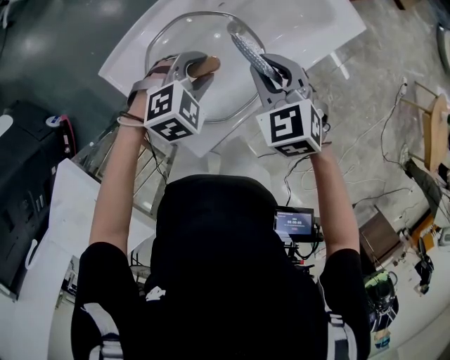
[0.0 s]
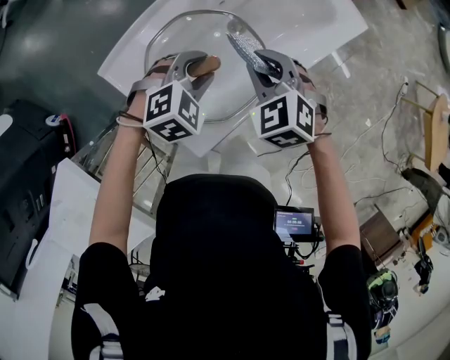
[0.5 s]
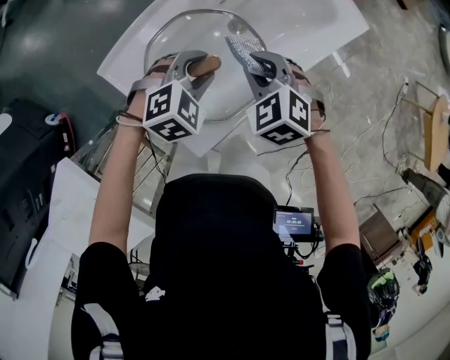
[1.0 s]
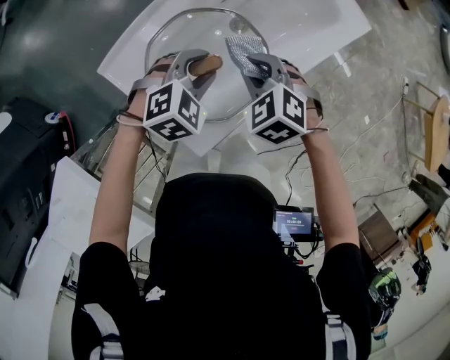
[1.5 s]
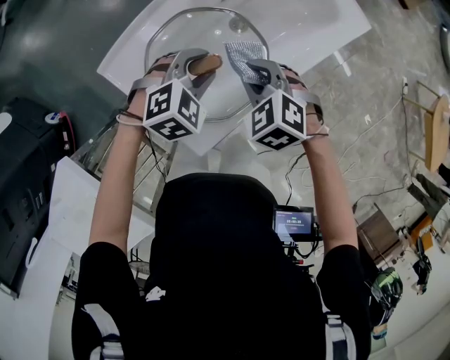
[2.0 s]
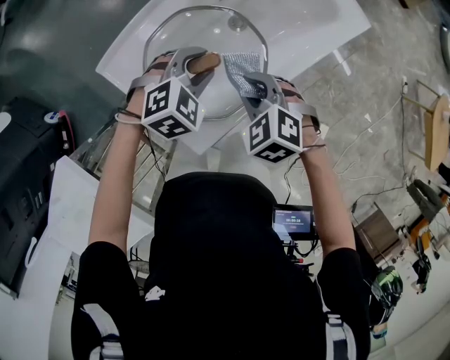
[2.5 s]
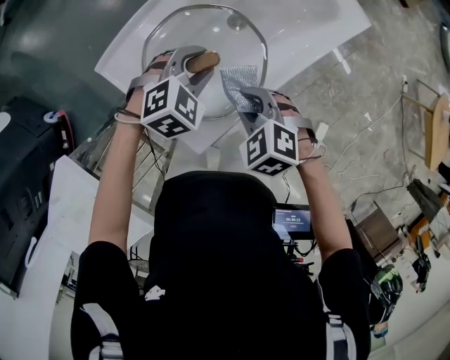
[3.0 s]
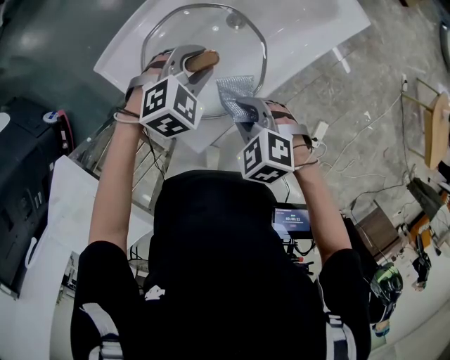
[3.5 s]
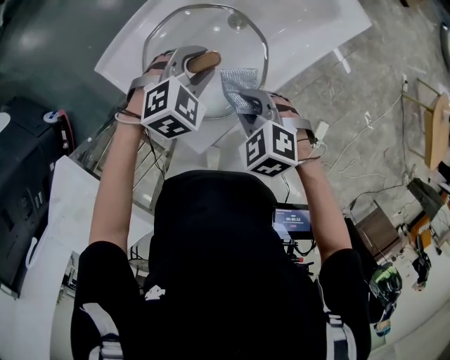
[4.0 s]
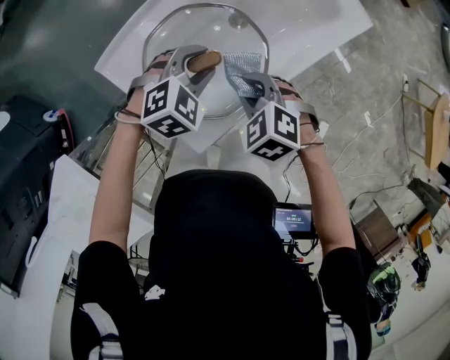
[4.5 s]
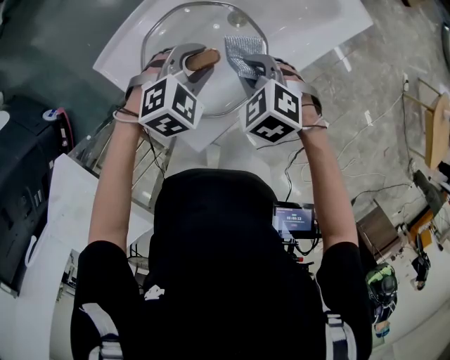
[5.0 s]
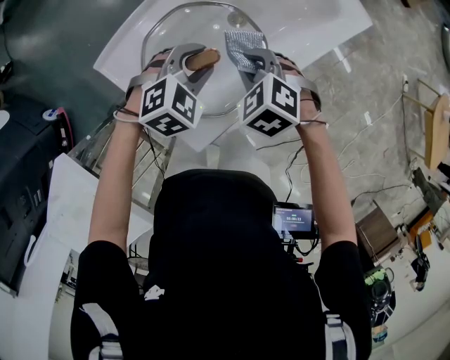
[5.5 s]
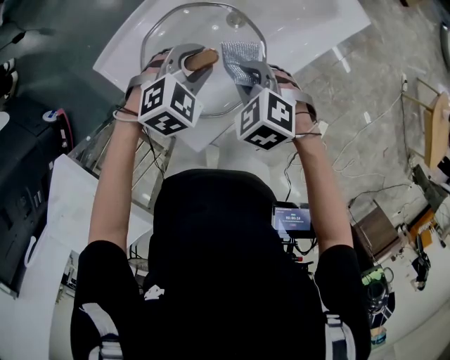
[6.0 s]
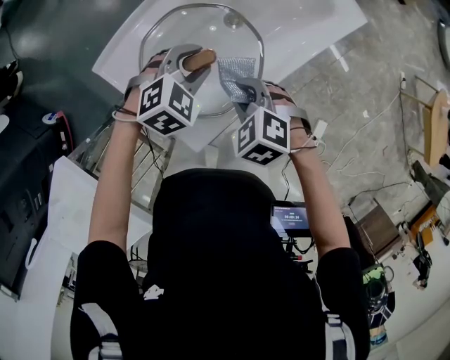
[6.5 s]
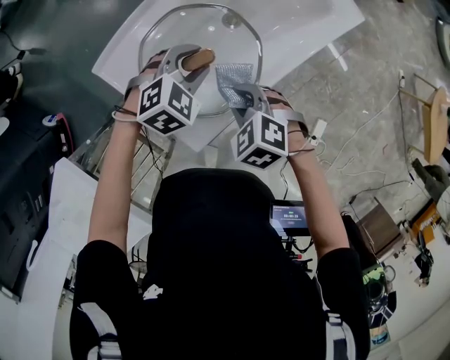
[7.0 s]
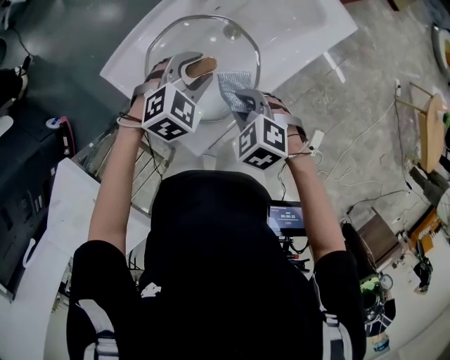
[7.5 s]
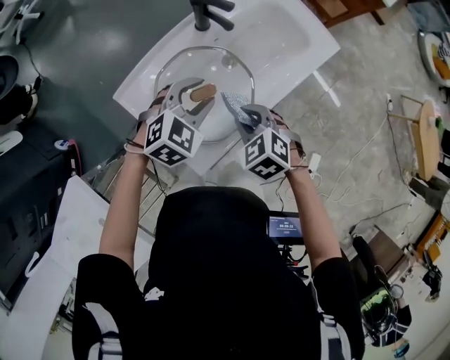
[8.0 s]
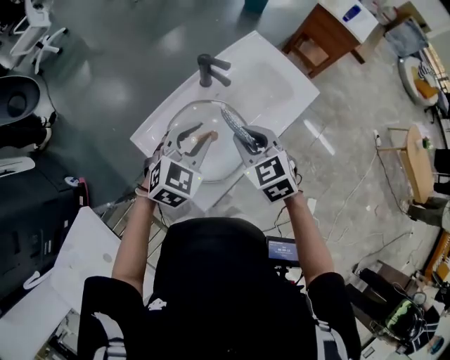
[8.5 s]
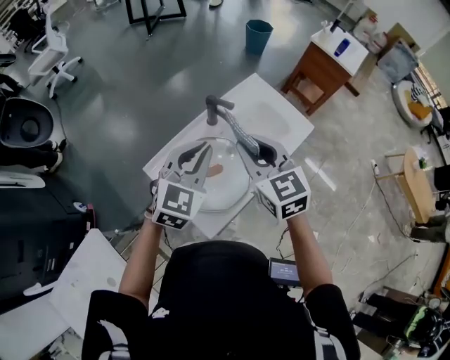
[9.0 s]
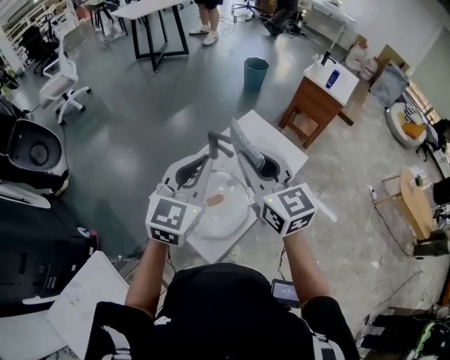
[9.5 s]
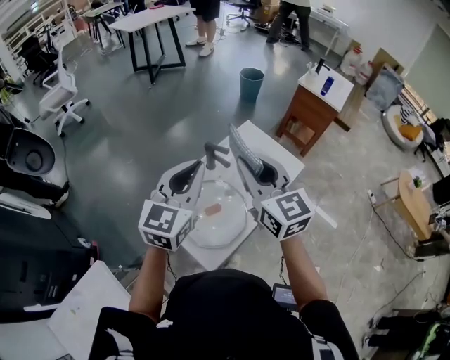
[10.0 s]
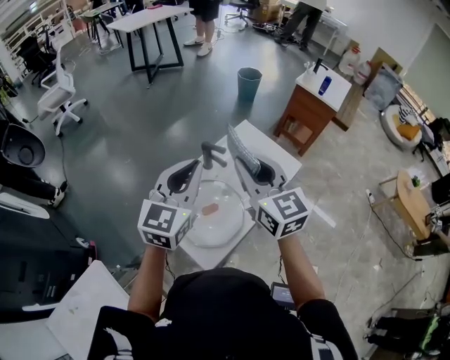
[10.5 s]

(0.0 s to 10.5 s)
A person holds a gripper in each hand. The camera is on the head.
0.0 s - 2.0 s: The right gripper moves downward, approximately 5 cm.
2.0 s - 4.0 s: The right gripper heads backward, covering about 10 cm.
4.0 s - 6.5 s: The right gripper moves approximately 10 cm forward and comes back.
6.5 s - 8.5 s: The grippers both shift upward by some 20 cm. The left gripper rotates approximately 20 degrees. The right gripper turns by approximately 40 degrees.
8.5 s - 10.5 s: Both grippers travel together upward, roughly 25 cm. The right gripper angles its fingers upward, by roughly 40 degrees, while the left gripper rotates roughly 30 degrees, and closes.

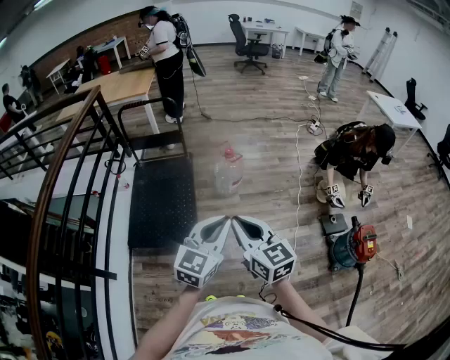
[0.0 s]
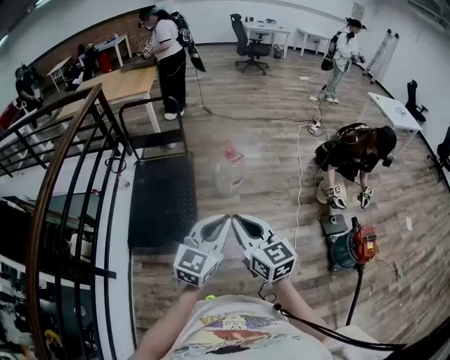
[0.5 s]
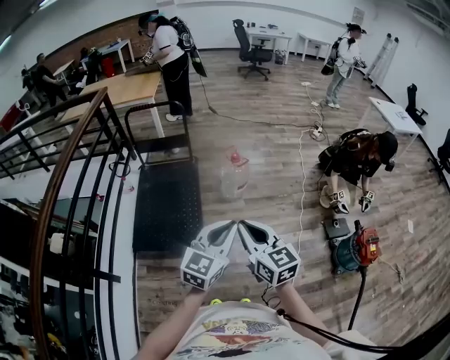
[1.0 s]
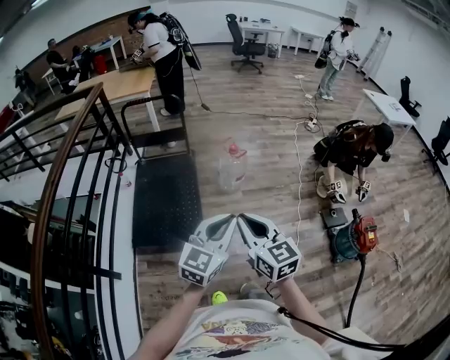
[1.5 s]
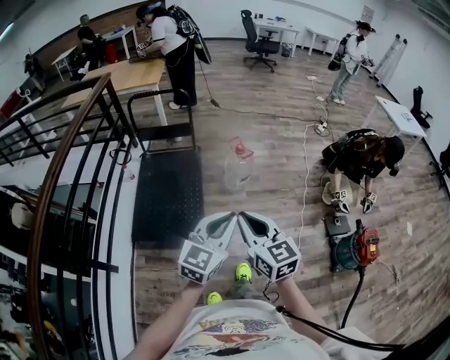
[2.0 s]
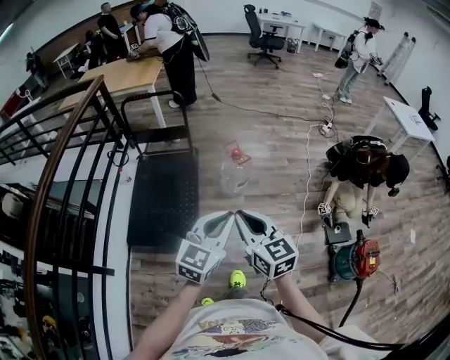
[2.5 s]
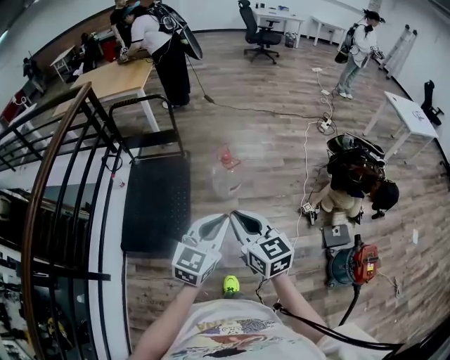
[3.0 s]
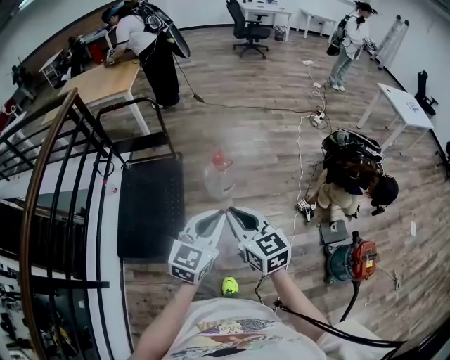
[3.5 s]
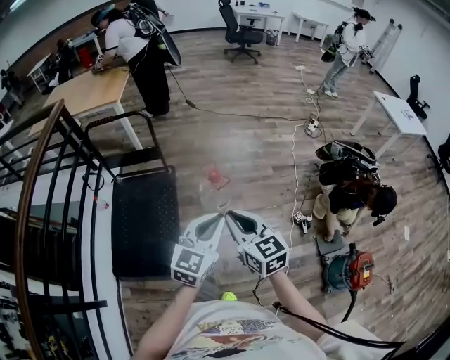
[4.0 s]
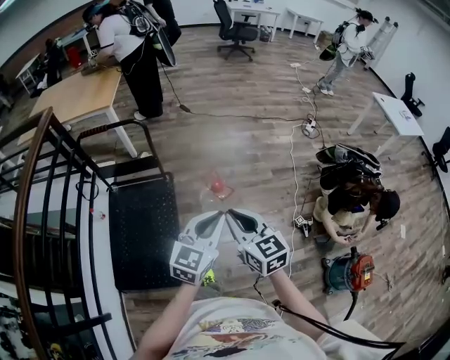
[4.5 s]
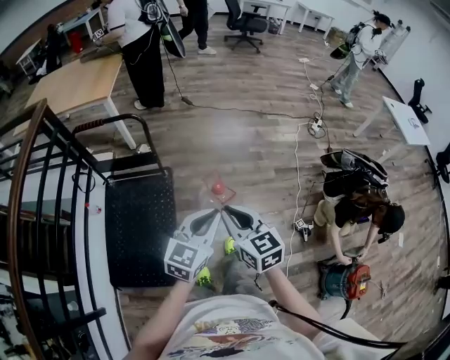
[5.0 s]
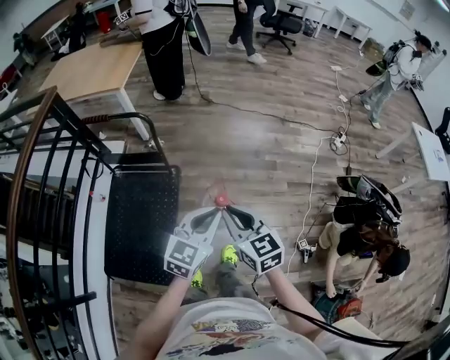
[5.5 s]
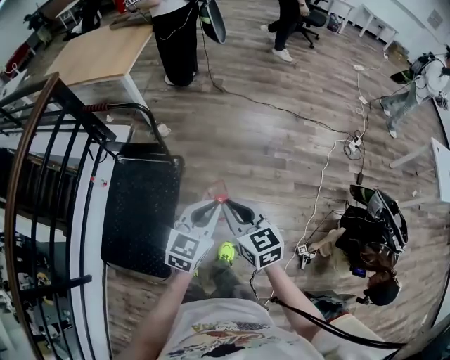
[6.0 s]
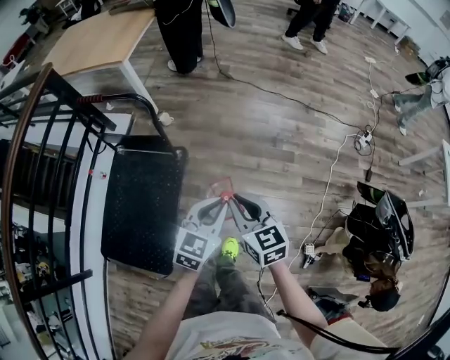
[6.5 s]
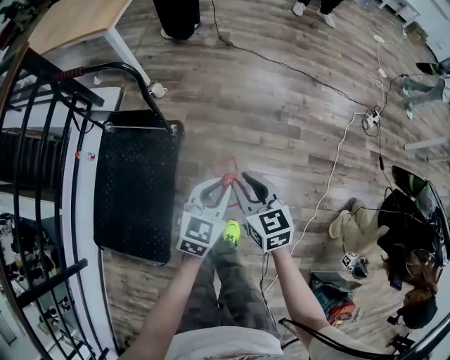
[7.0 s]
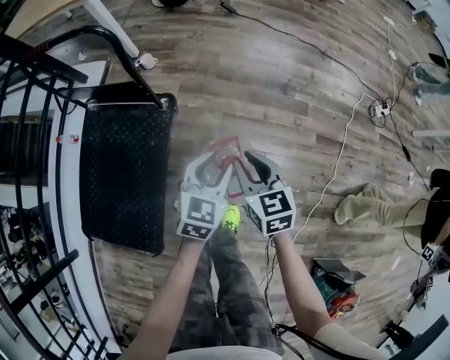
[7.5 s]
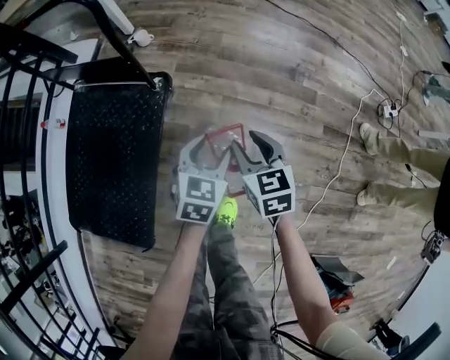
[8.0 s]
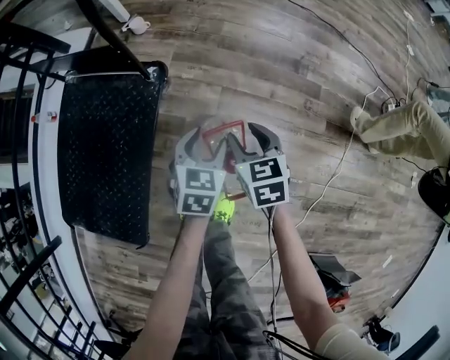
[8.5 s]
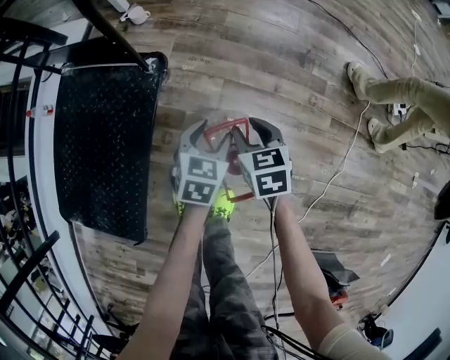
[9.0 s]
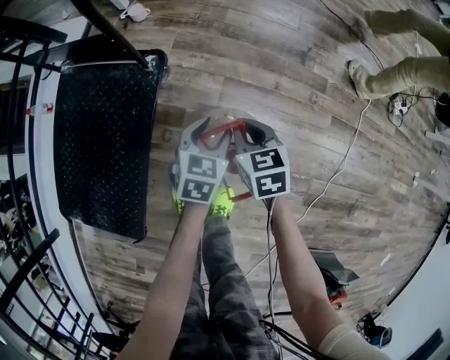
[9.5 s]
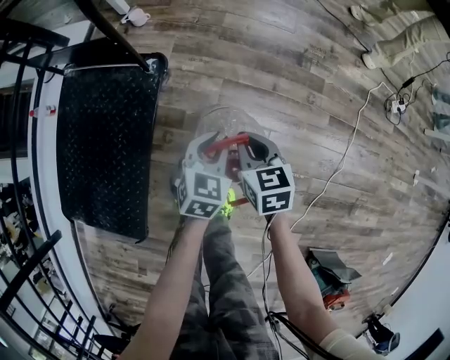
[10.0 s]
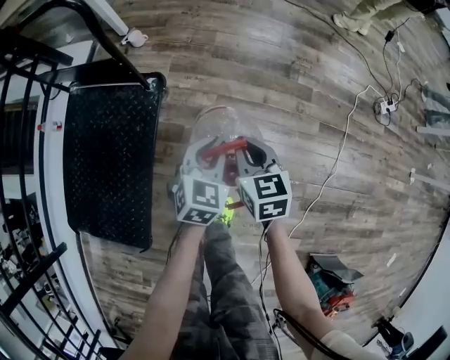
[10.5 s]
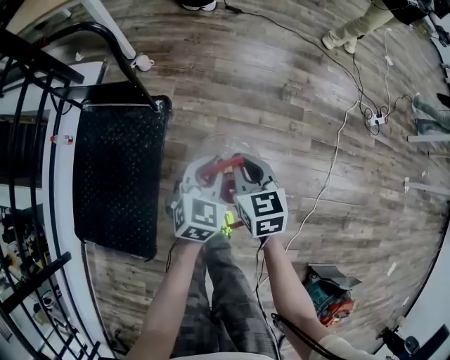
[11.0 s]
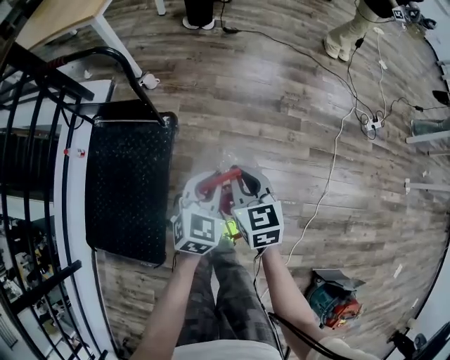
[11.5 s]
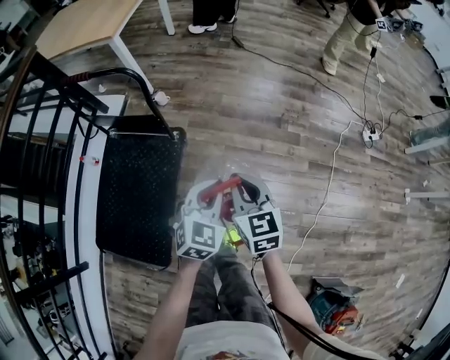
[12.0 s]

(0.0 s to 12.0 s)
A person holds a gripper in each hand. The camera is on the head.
0.0 s - 2.0 s: Both grippers move to the left, some 5 cm.
2.0 s - 4.0 s: Both grippers move forward, about 35 cm.
4.0 s - 6.0 s: The pair of grippers is taken forward, some 40 cm.
6.0 s - 8.0 s: The two grippers go approximately 40 cm downward. The left gripper rotates approximately 20 degrees, and opens. Meanwhile the right gripper changes its angle by about 20 degrees, and opens its fingers.
8.0 s - 10.0 s: The grippers both shift downward by roughly 10 cm. The right gripper closes up. The left gripper closes its fingers.
10.0 s - 12.0 s: Both grippers move upward, about 35 cm.

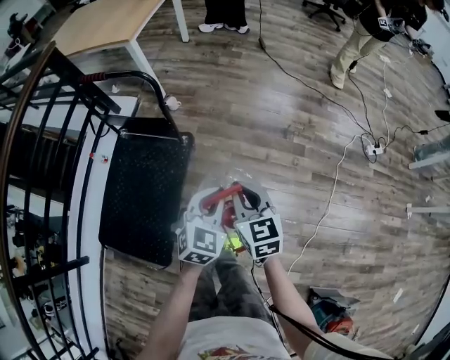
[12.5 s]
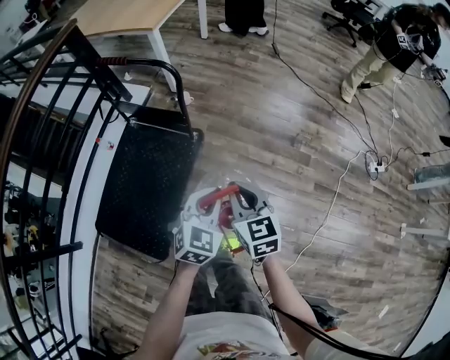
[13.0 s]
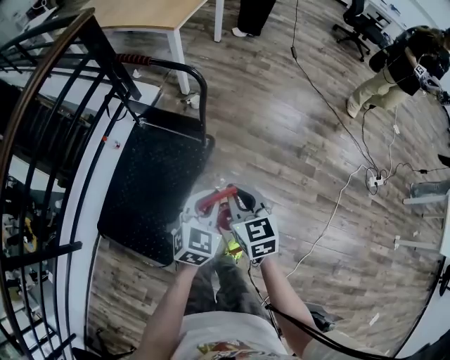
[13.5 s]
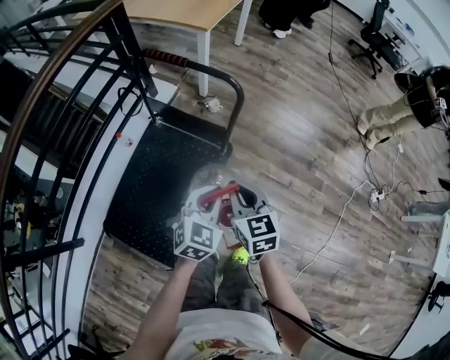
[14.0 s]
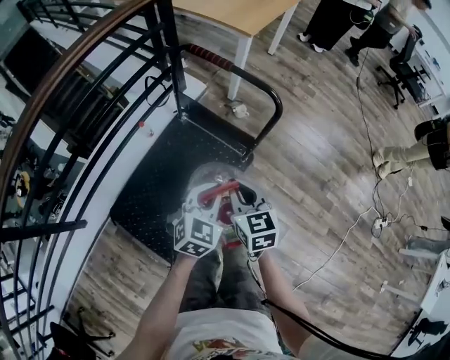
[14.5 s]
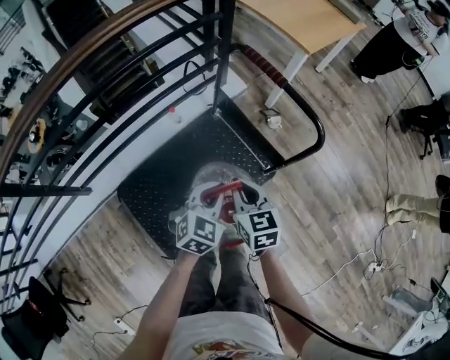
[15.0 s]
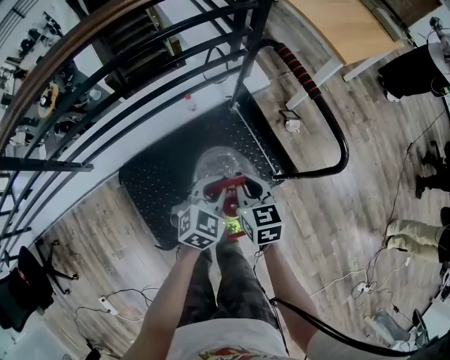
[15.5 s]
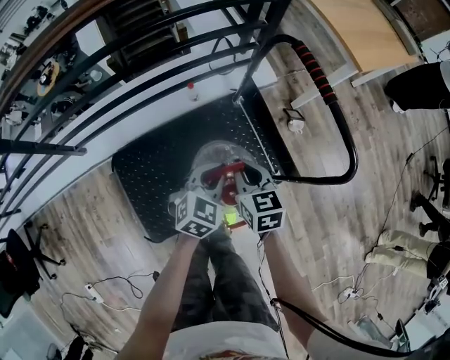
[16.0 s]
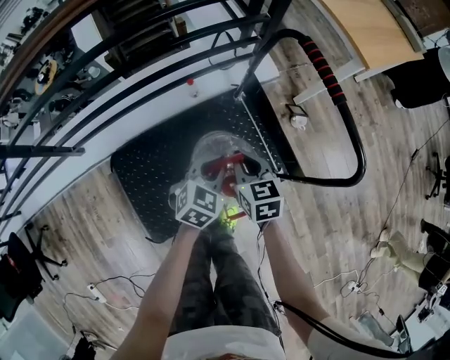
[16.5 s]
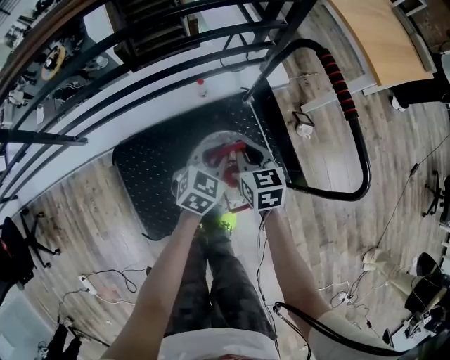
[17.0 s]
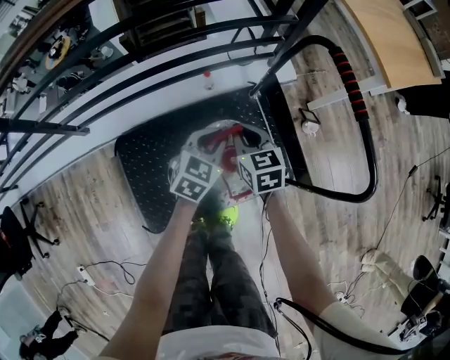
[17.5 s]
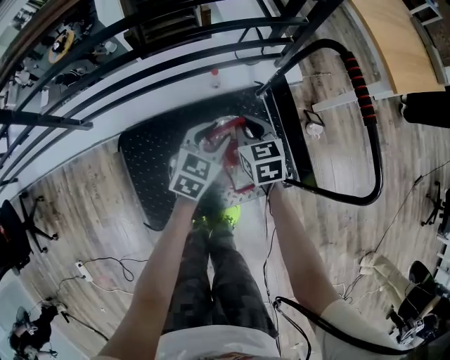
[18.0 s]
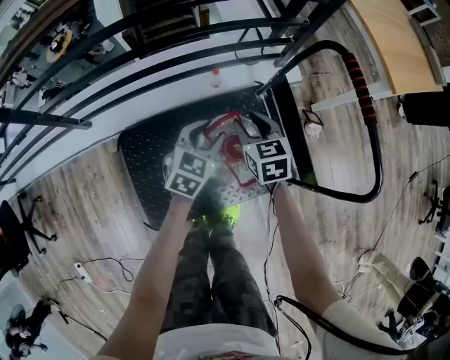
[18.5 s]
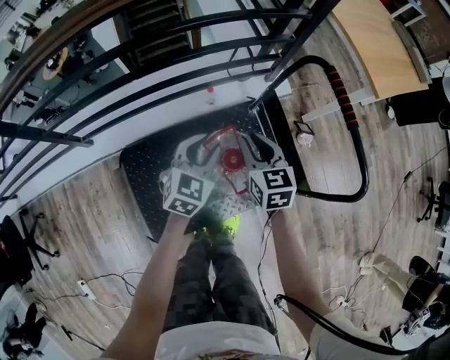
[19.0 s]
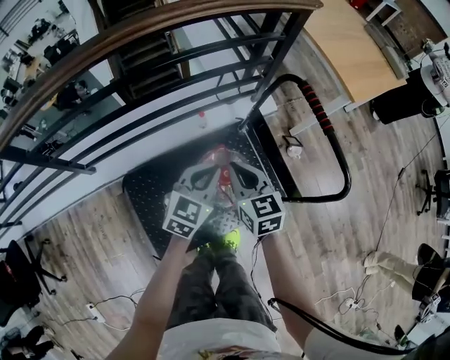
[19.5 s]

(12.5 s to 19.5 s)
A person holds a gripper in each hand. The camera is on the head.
12.5 s - 14.5 s: The grippers both shift to the left by approximately 35 cm. The right gripper changes its angle by approximately 20 degrees.
14.5 s - 16.0 s: The right gripper changes place by approximately 25 cm, and changes its angle by approximately 30 degrees; the left gripper changes place by roughly 25 cm, and swivels approximately 30 degrees.
16.0 s - 17.5 s: The right gripper shifts some 15 cm forward, to the left and downward, while the left gripper goes approximately 10 cm forward and to the left.
17.5 s - 19.5 s: The right gripper shifts some 15 cm upward and backward, and opens and closes again. Meanwhile the left gripper goes roughly 15 cm upward, and opens and closes again.
